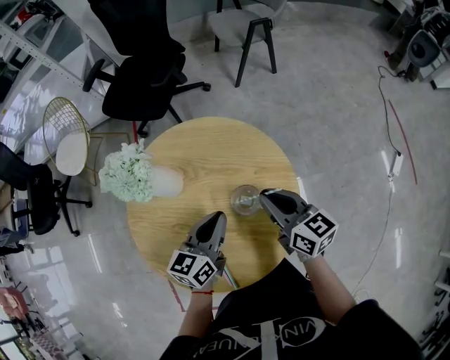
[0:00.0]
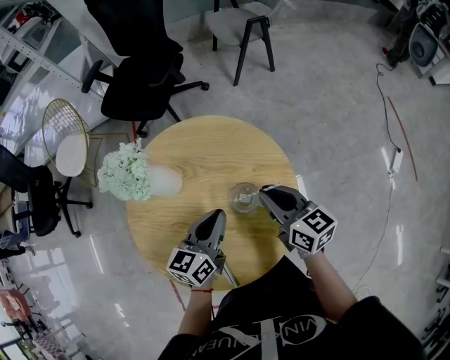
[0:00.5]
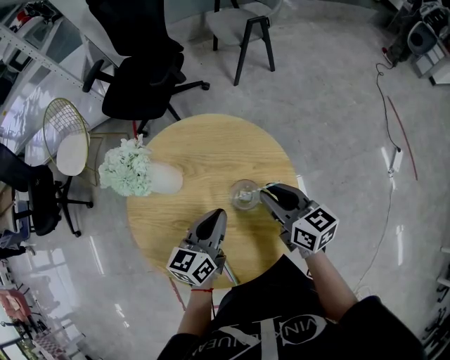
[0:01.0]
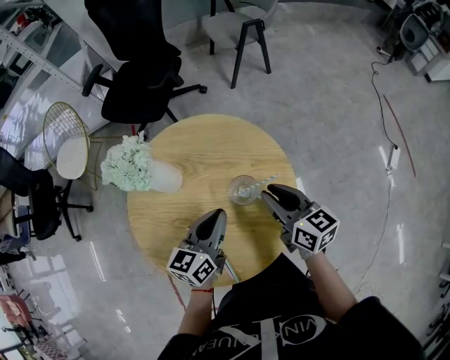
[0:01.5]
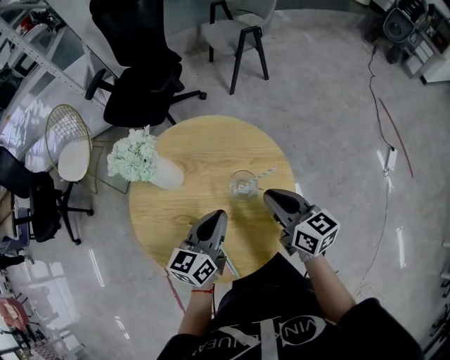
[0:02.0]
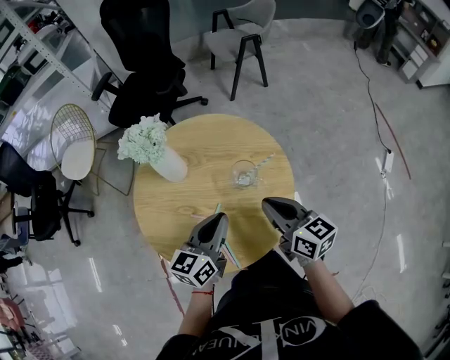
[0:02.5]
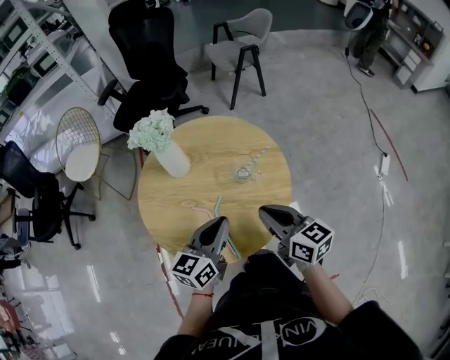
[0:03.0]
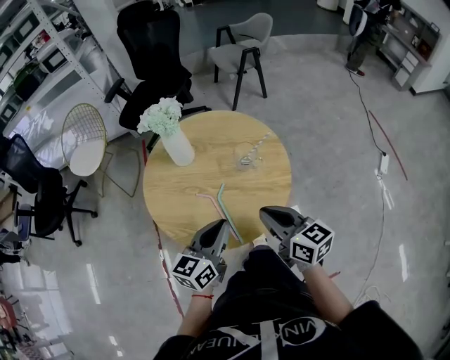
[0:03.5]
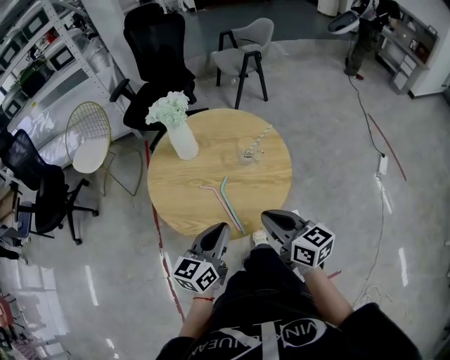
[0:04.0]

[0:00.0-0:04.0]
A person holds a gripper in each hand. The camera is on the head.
0:00.0 to 0:02.0: The right gripper moves backward, some 5 cm. The left gripper changes place by about 5 cm.
0:02.0 to 0:04.0: The grippers both shift backward by approximately 25 cm.

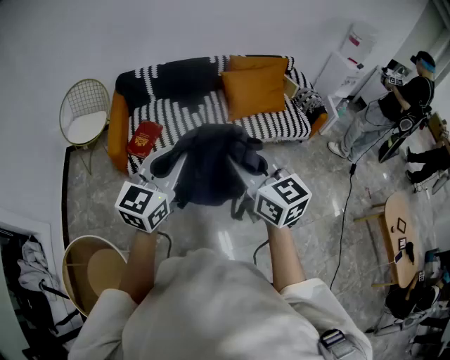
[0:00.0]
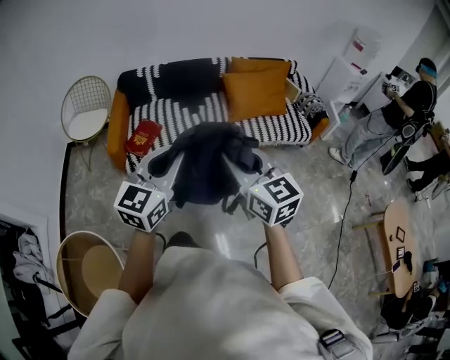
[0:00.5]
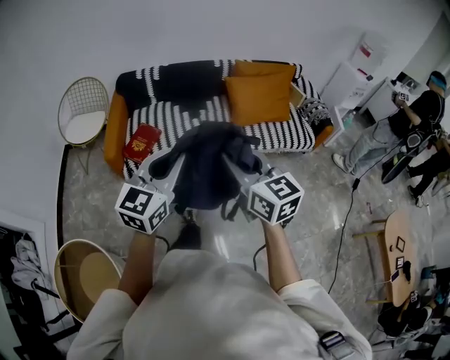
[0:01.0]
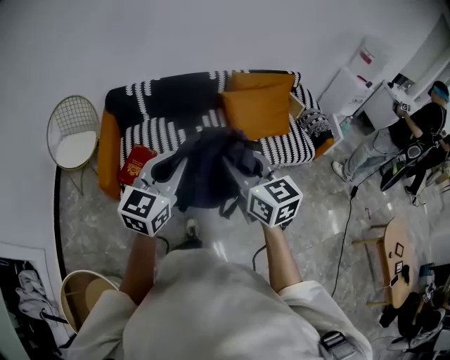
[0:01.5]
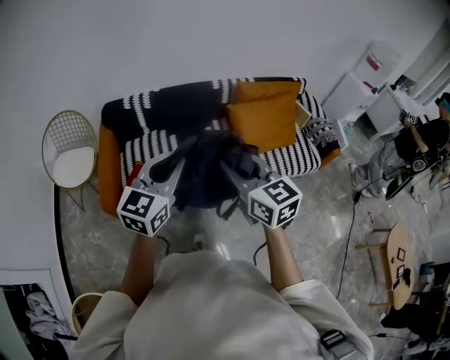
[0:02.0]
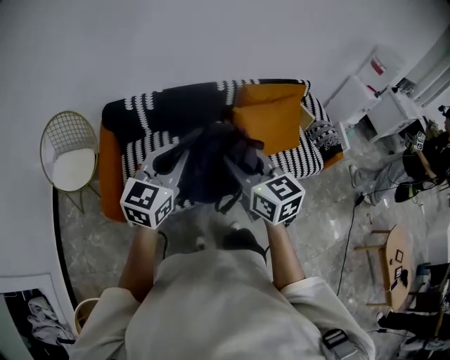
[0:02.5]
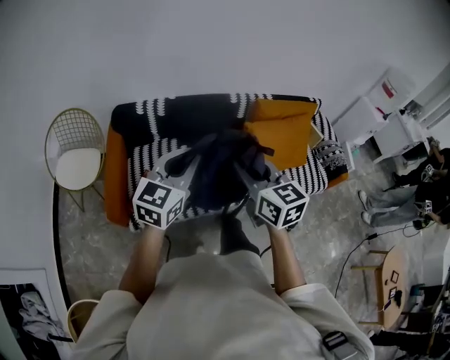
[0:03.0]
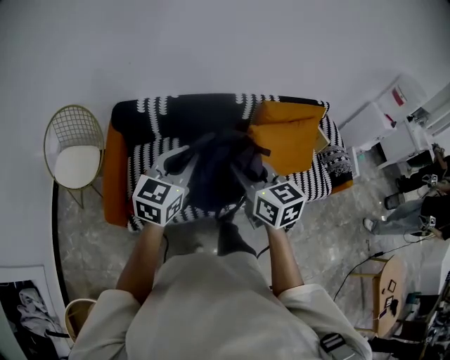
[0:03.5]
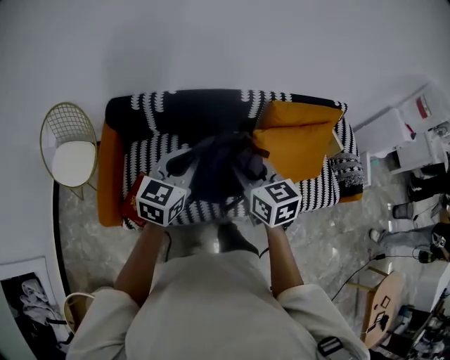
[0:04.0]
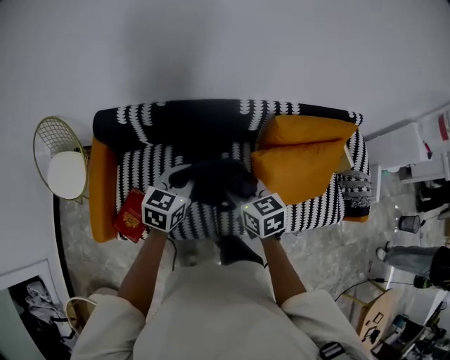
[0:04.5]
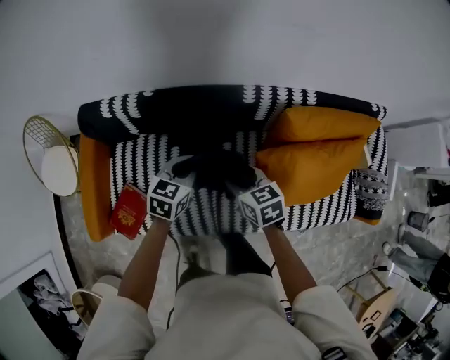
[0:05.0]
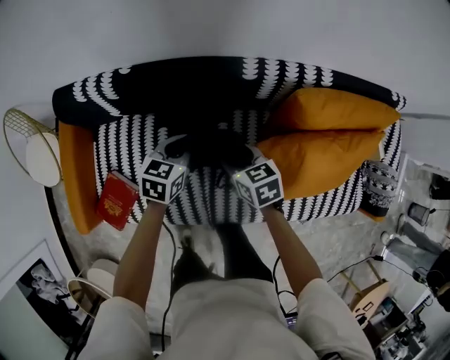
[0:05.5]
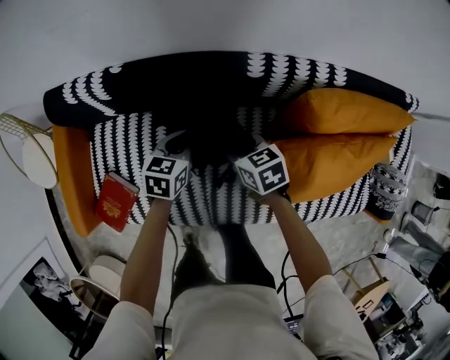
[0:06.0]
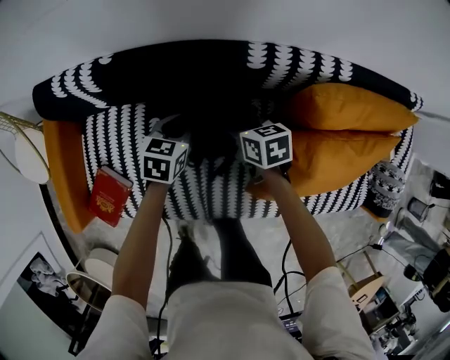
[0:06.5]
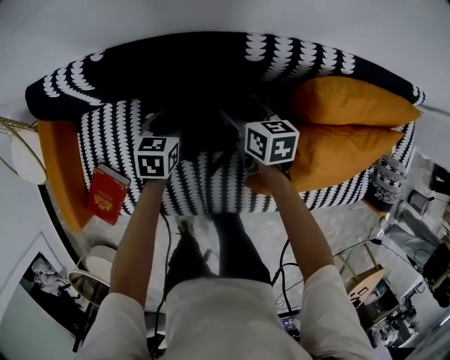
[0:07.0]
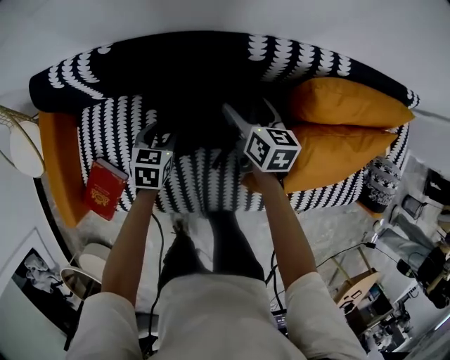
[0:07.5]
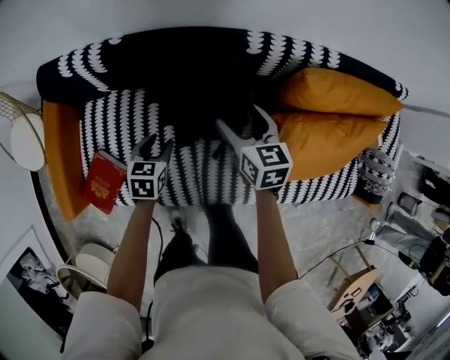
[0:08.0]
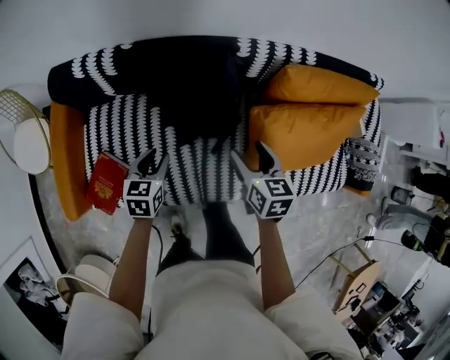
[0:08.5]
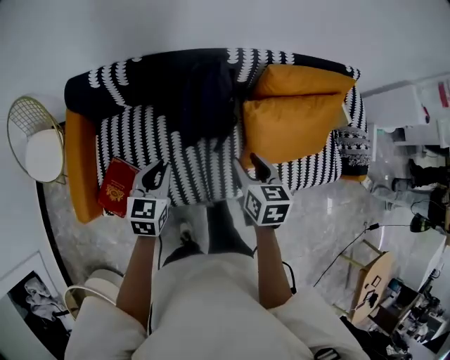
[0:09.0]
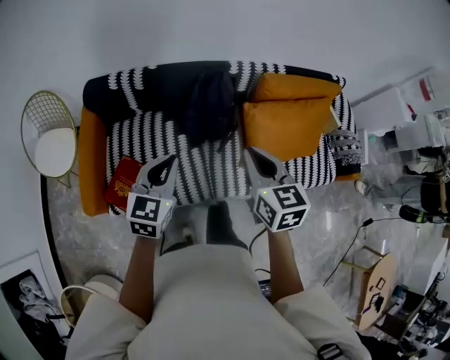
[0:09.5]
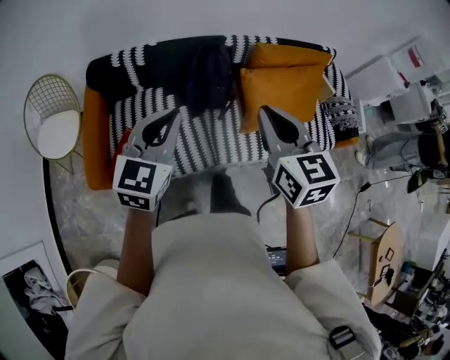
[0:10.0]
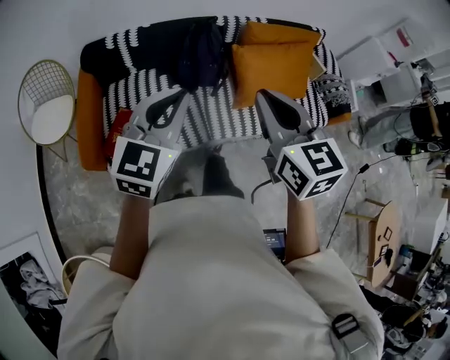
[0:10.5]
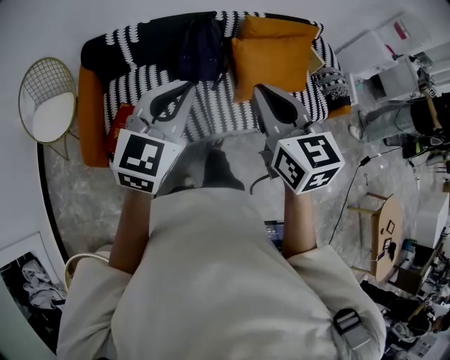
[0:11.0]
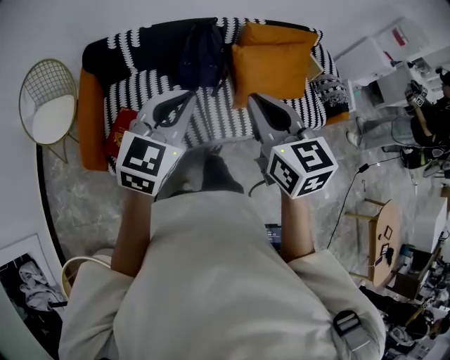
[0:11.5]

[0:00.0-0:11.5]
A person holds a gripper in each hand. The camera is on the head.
0:00.0 to 0:02.0: Both grippers move forward, approximately 40 cm.
0:02.0 to 0:04.0: Both grippers move forward, some 30 cm.
0:04.0 to 0:06.0: Both grippers move downward and forward, approximately 50 cm. The left gripper changes its angle by about 30 degrees; the right gripper rotates some 30 degrees.
0:06.0 to 0:07.5: The left gripper goes some 10 cm downward and to the left, and opens its fingers; the right gripper heads forward and to the right, covering approximately 10 cm, changes its angle by about 30 degrees, and opens up.
0:07.5 to 0:09.5: The right gripper moves backward and upward, some 60 cm, turns by roughly 30 degrees, and closes up. The left gripper moves upward and backward, roughly 50 cm, points its fingers approximately 30 degrees further upward, and closes up.
0:09.5 to 0:11.5: Both grippers move backward and upward, approximately 25 cm. The left gripper turns by approximately 20 degrees.

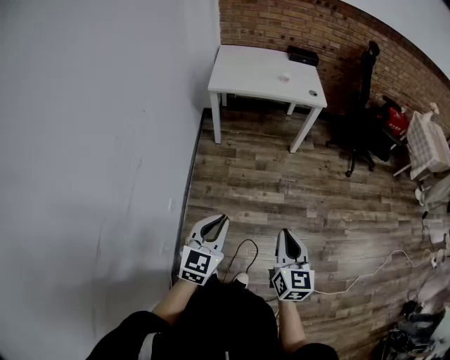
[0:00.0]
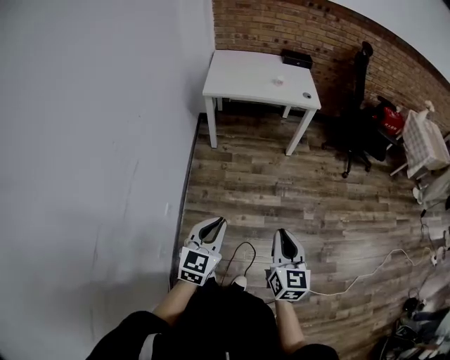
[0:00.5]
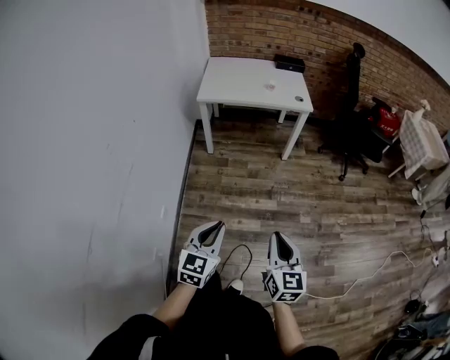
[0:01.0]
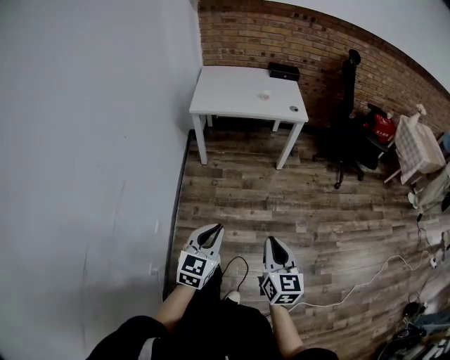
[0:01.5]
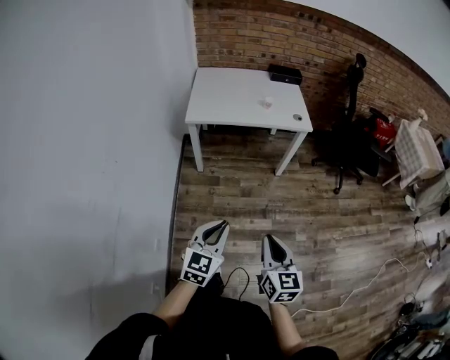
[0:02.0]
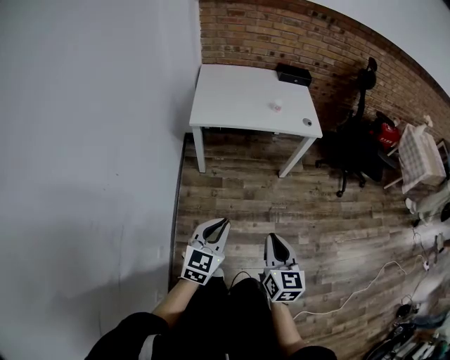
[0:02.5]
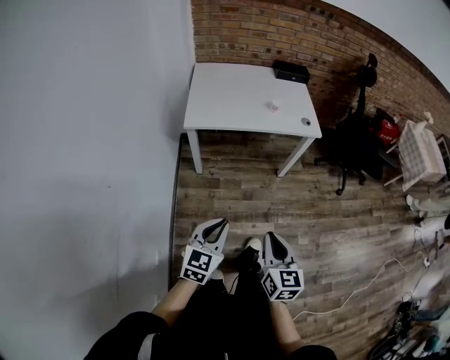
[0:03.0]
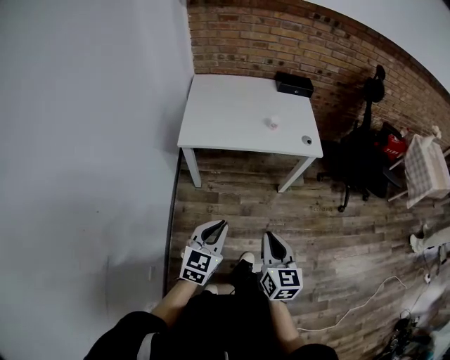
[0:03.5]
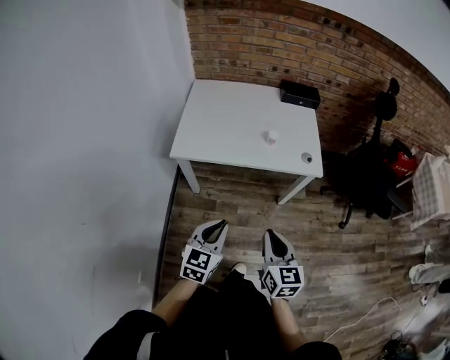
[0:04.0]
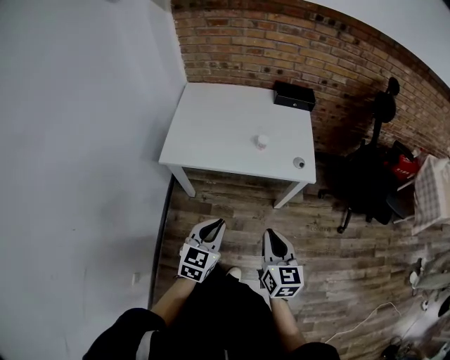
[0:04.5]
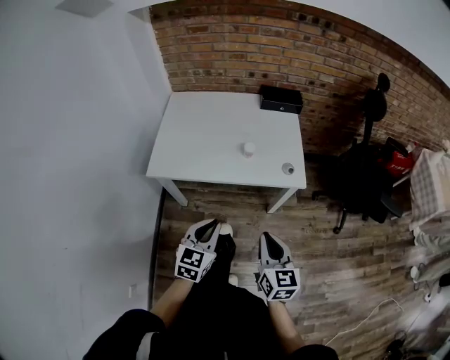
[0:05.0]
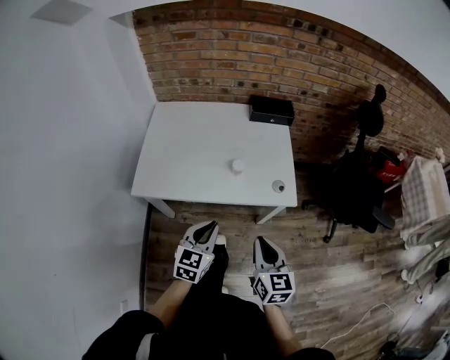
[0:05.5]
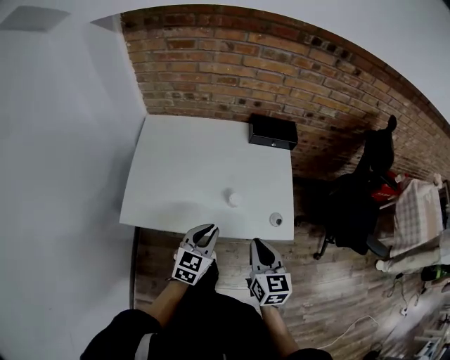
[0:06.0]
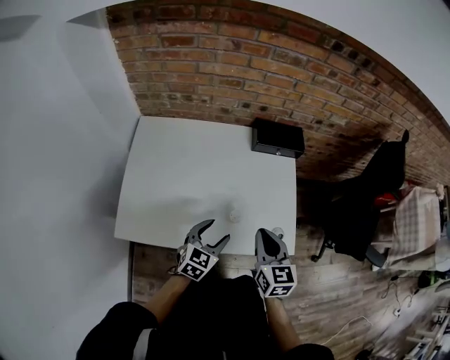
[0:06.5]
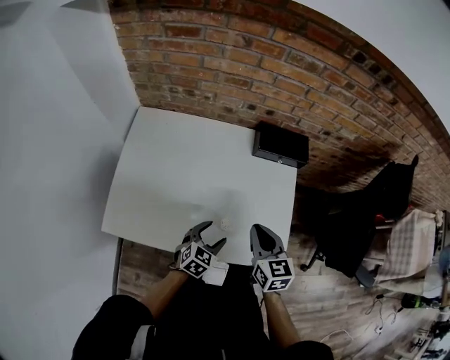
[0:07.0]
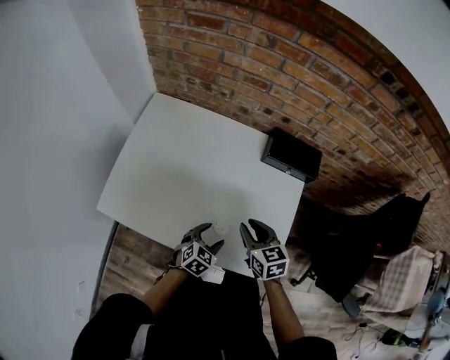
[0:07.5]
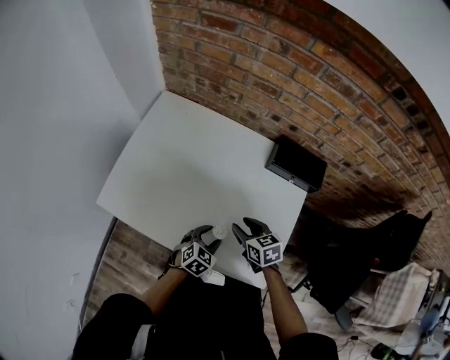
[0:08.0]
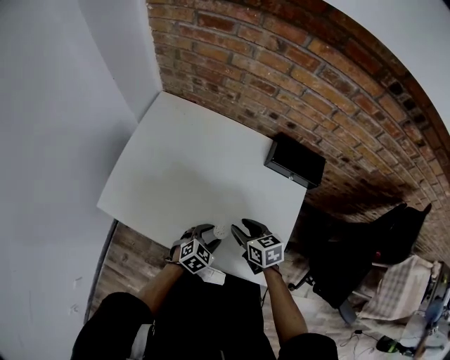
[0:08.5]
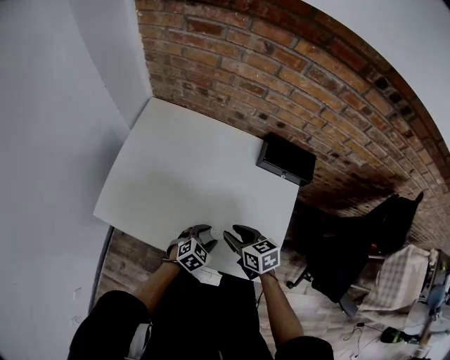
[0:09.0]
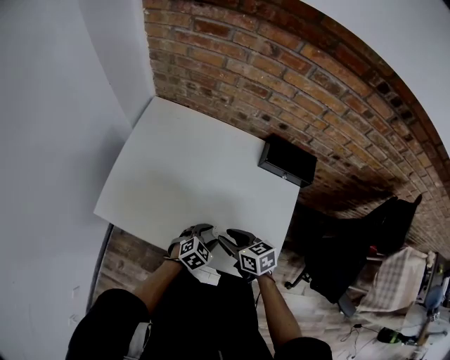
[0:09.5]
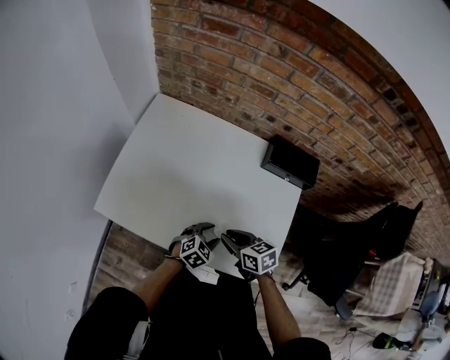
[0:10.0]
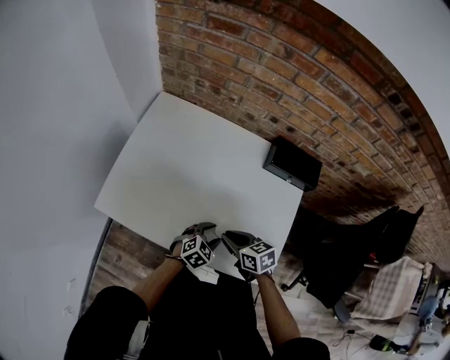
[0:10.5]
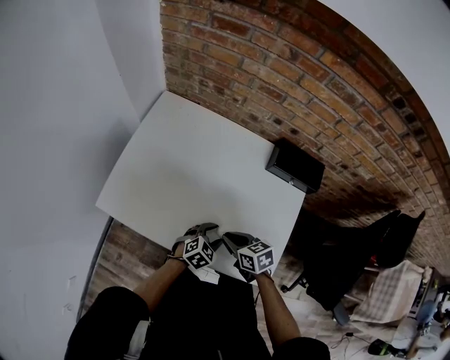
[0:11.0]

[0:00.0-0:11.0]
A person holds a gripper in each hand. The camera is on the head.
0:00.0 to 0:02.0: The grippers both shift forward by roughly 20 cm.
0:02.0 to 0:03.5: Both grippers travel together forward, approximately 25 cm.
0:03.5 to 0:05.5: The two grippers go roughly 35 cm forward and to the right.
0:05.5 to 0:07.5: The left gripper shifts some 35 cm forward and downward, rotates about 20 degrees, and opens up. Meanwhile the right gripper moves forward, approximately 40 cm, and turns by some 40 degrees.
0:07.5 to 0:09.0: The right gripper shifts by some 5 cm.
0:09.0 to 0:11.0: The right gripper closes.
